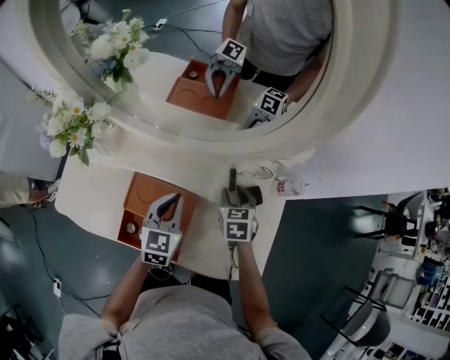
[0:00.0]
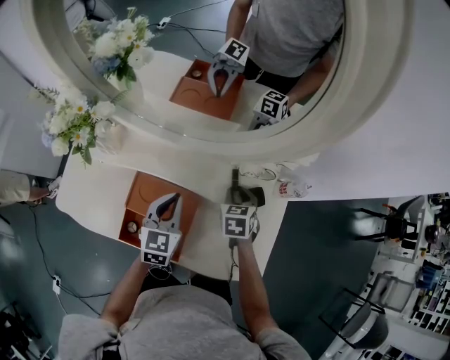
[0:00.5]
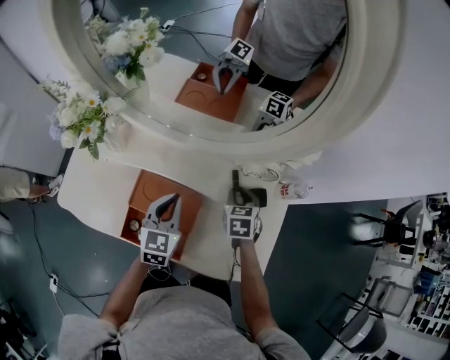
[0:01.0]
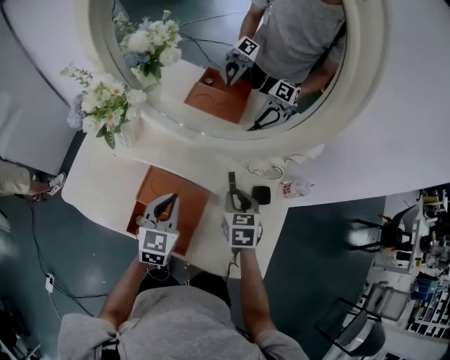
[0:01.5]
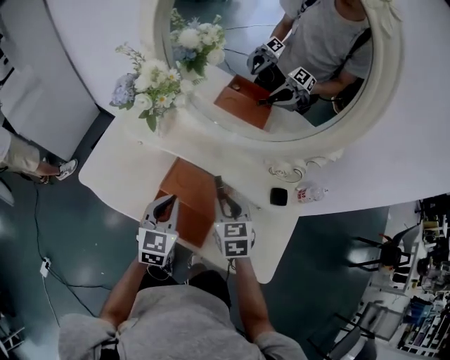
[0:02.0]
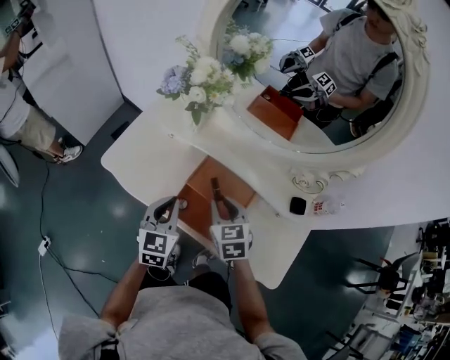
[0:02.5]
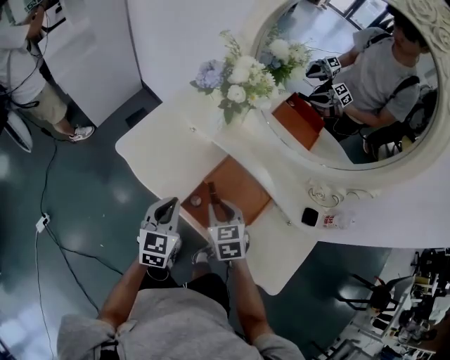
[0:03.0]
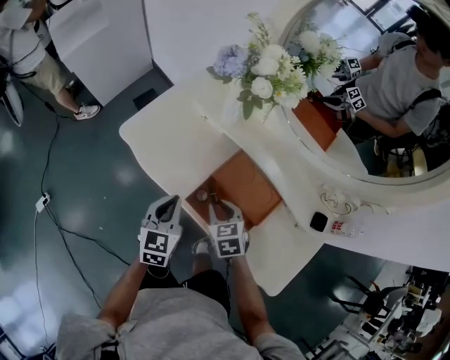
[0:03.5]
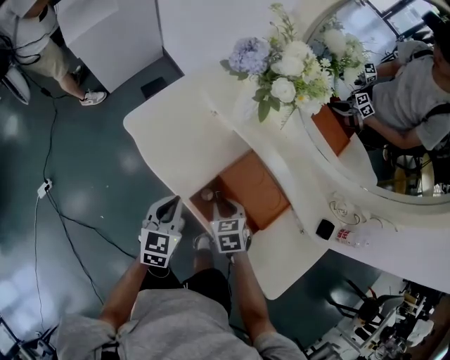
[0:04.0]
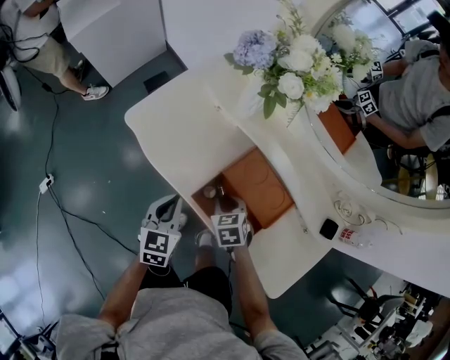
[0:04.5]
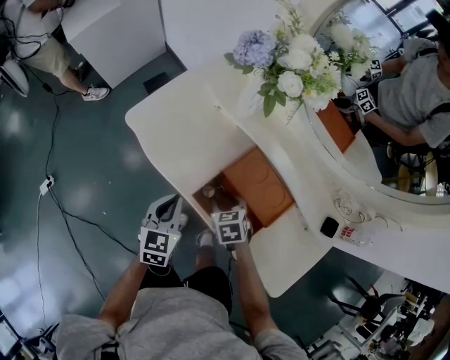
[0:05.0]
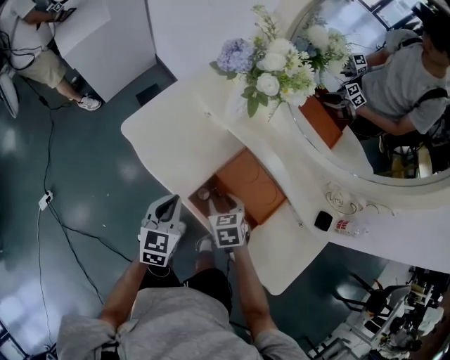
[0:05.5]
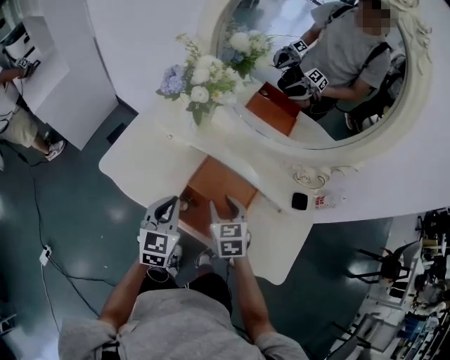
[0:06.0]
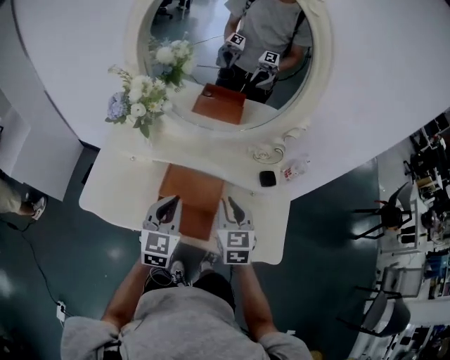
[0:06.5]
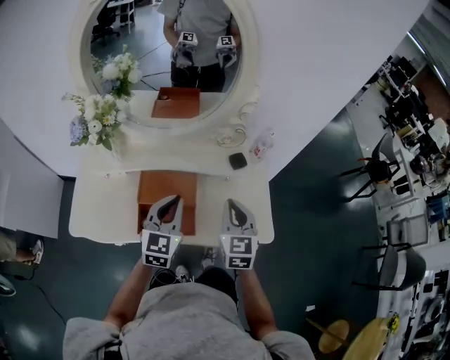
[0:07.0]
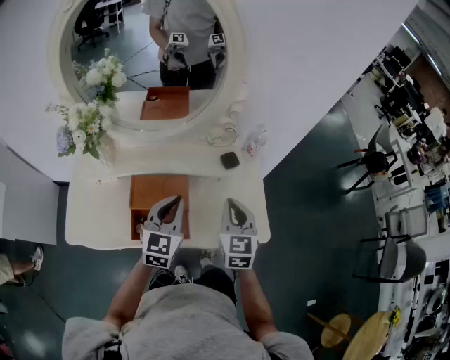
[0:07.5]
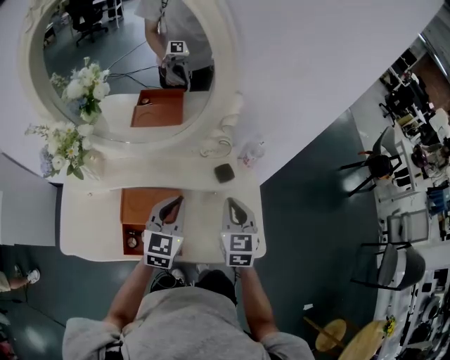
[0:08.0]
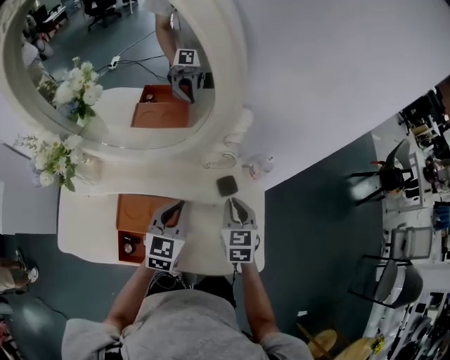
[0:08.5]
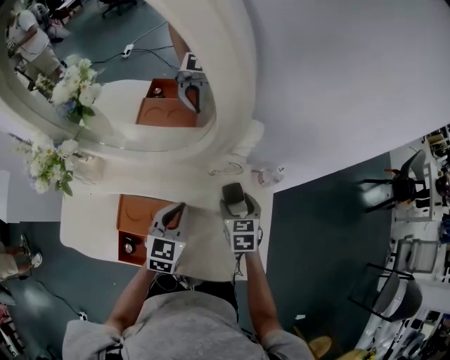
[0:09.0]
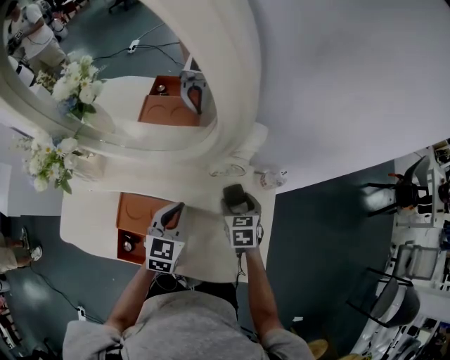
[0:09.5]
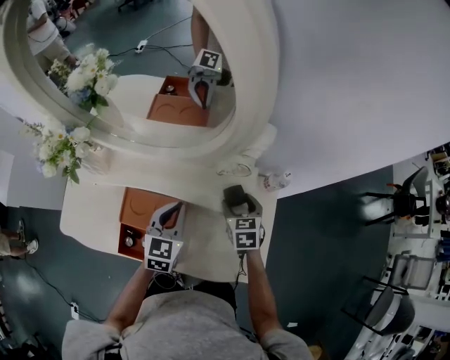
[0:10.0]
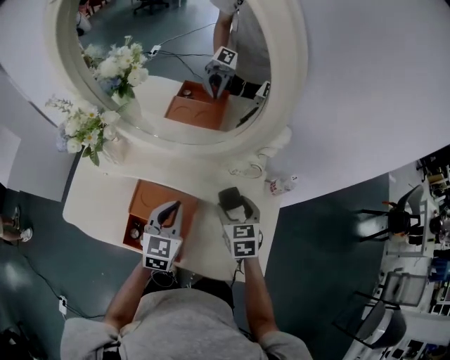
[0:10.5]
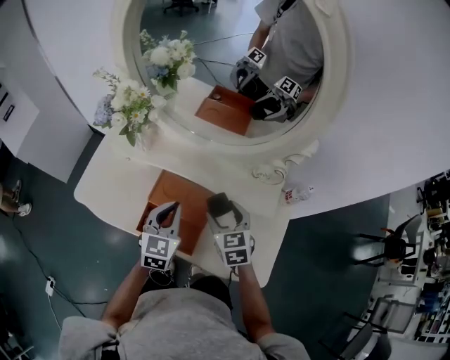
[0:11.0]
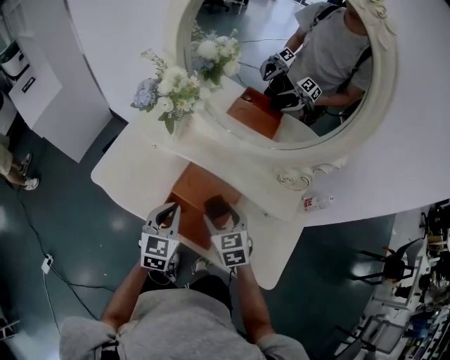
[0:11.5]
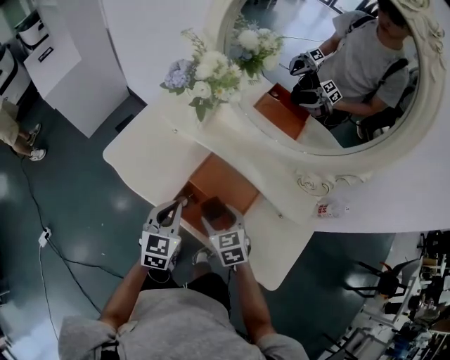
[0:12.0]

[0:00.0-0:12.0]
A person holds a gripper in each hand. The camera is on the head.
0:00.0 to 0:02.0: The left gripper goes roughly 15 cm to the left and backward; the right gripper shifts some 20 cm to the left, backward and upward.
0:02.0 to 0:04.0: Both grippers travel together to the left and downward, about 20 cm. The left gripper turns by some 20 degrees; the right gripper turns by some 30 degrees.
0:04.0 to 0:06.0: Both grippers travel together upward and to the right, approximately 15 cm. The right gripper turns by about 30 degrees.
0:06.0 to 0:08.0: The right gripper ends up approximately 30 cm from where it was, rotates roughly 40 degrees, and closes, while the left gripper shifts by some 30 cm, and turns by roughly 40 degrees.
0:08.0 to 0:10.0: The right gripper moves downward and forward, roughly 20 cm, swivels about 30 degrees, and opens. The left gripper moves downward and forward, some 10 cm.
0:10.0 to 0:12.0: The left gripper moves approximately 30 cm, and rotates about 30 degrees; the right gripper travels upward and back again, roughly 10 cm each way, and turns by approximately 40 degrees.

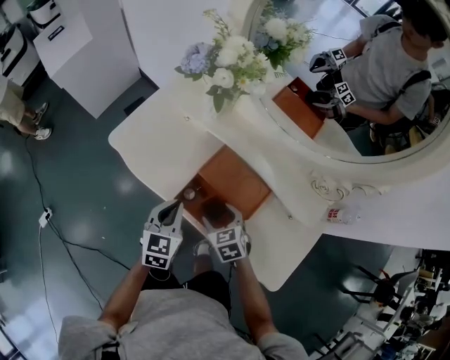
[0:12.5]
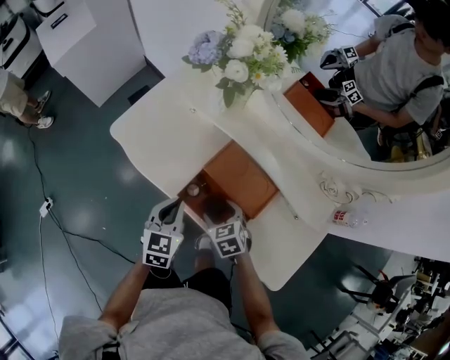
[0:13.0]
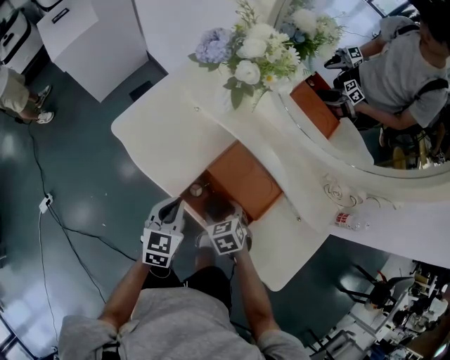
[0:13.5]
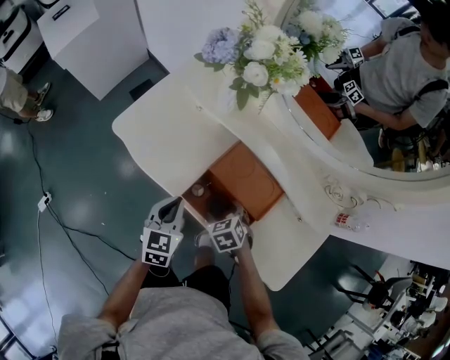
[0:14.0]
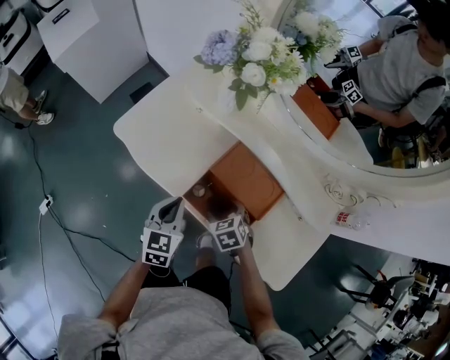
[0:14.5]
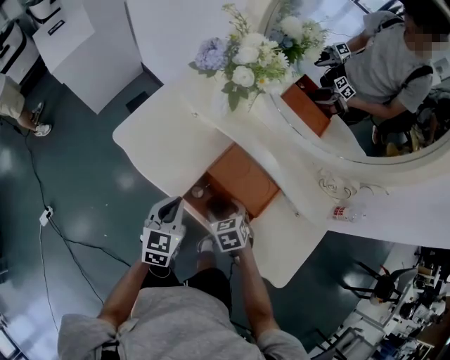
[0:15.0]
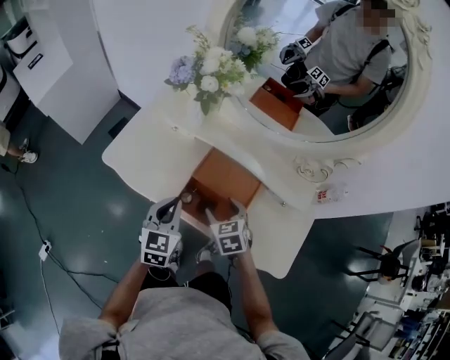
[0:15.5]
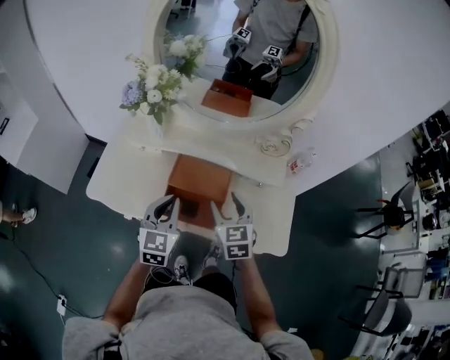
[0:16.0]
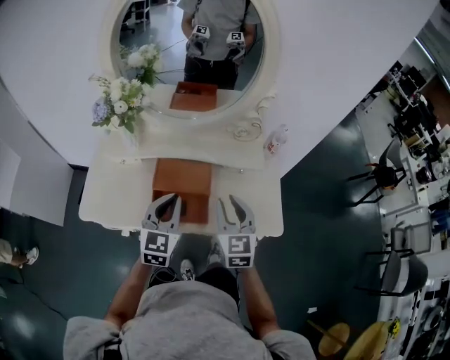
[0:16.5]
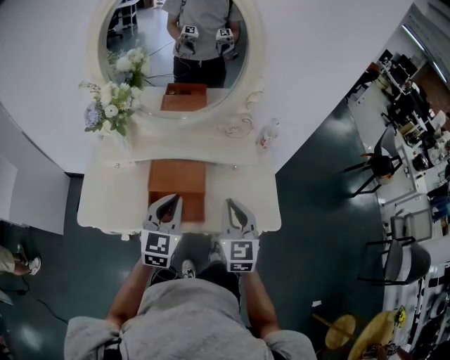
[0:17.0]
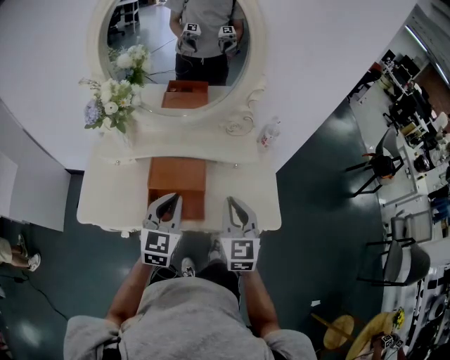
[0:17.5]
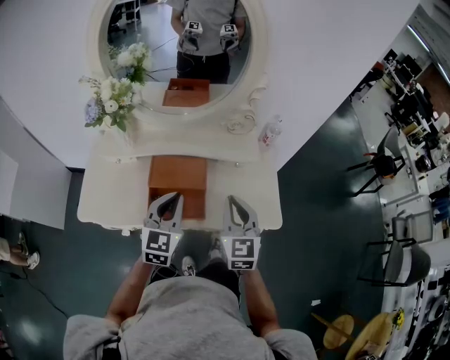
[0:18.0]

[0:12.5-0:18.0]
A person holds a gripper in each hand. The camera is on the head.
0:12.5 to 0:14.5: The right gripper travels downward by roughly 5 cm.
0:14.5 to 0:16.0: The left gripper shifts some 15 cm upward, and rotates roughly 30 degrees. Meanwhile the right gripper shifts some 20 cm upward, and angles its fingers upward, by approximately 30 degrees.
0:16.0 to 0:18.0: The left gripper goes about 10 cm to the right. The right gripper moves to the right, backward and upward, about 15 cm, turns by approximately 20 degrees, and closes.

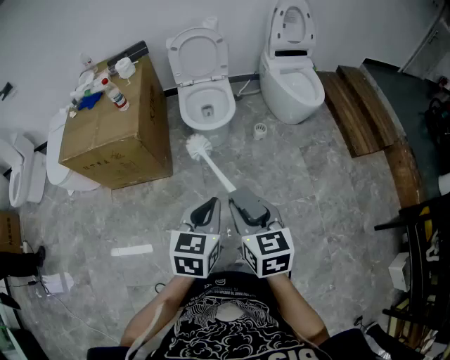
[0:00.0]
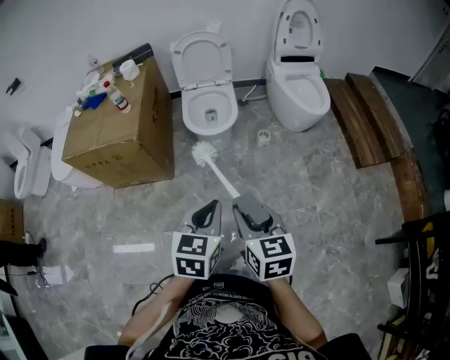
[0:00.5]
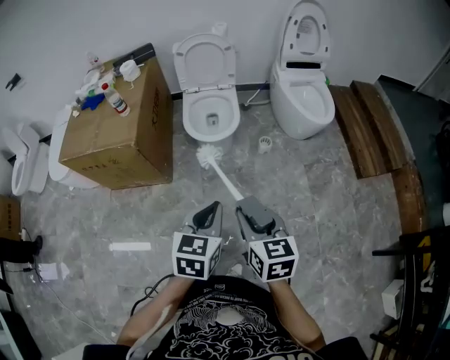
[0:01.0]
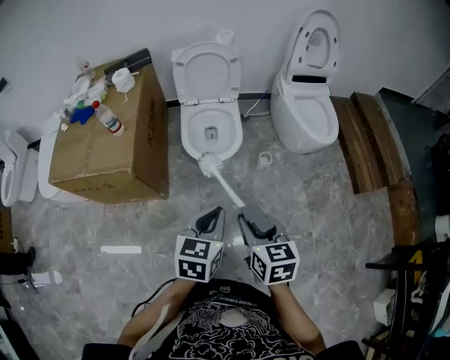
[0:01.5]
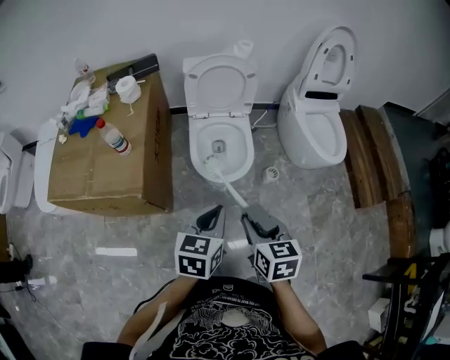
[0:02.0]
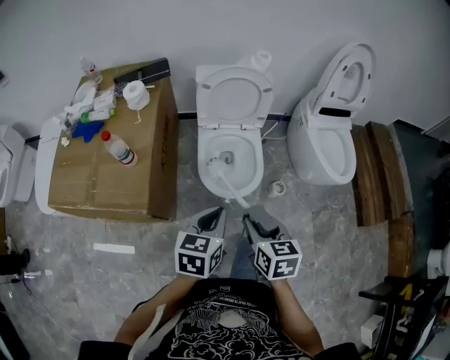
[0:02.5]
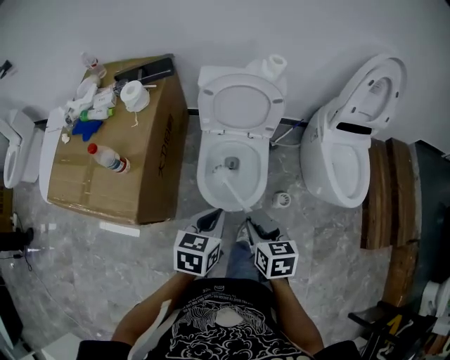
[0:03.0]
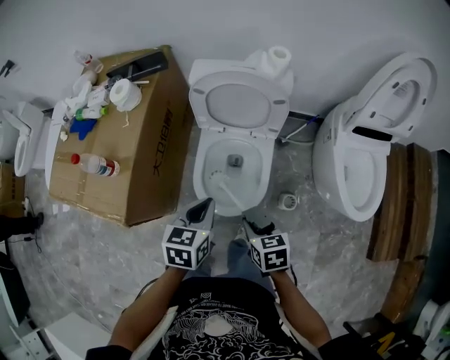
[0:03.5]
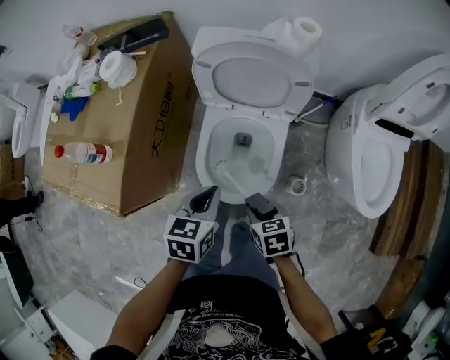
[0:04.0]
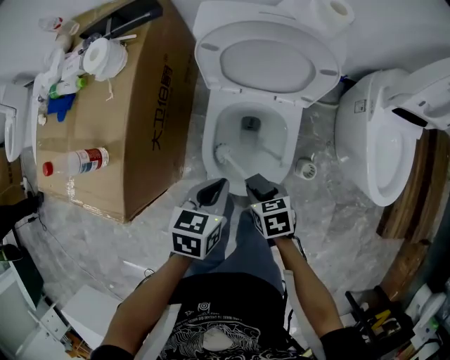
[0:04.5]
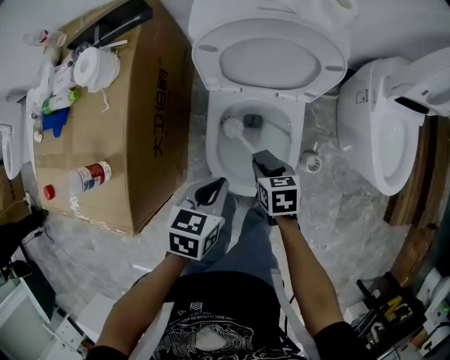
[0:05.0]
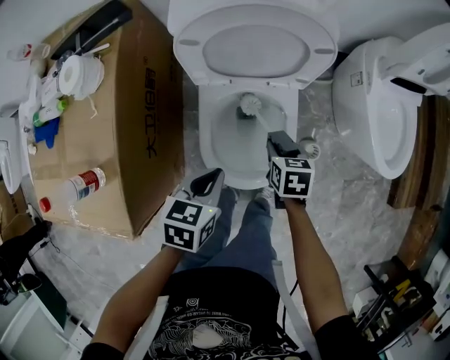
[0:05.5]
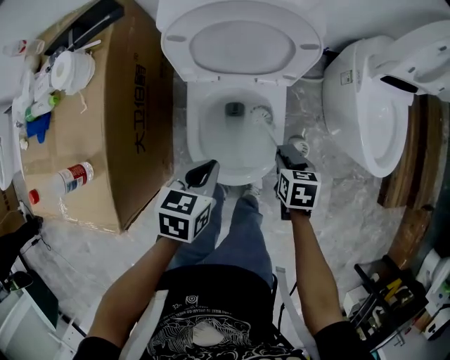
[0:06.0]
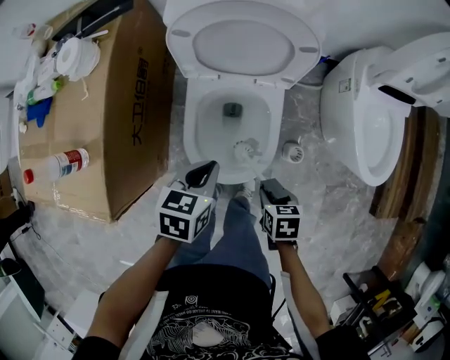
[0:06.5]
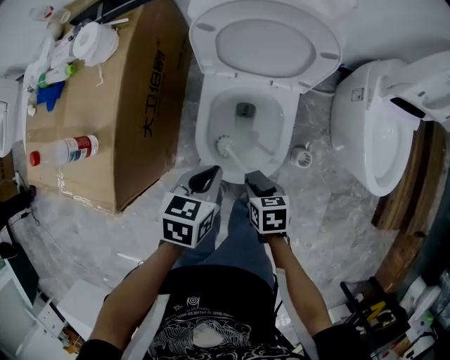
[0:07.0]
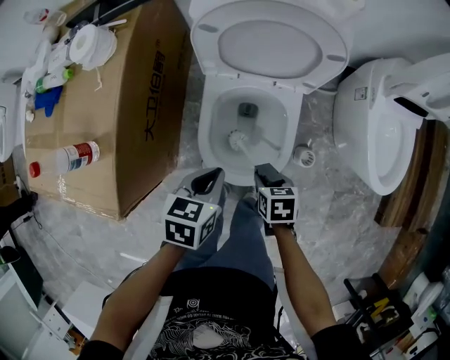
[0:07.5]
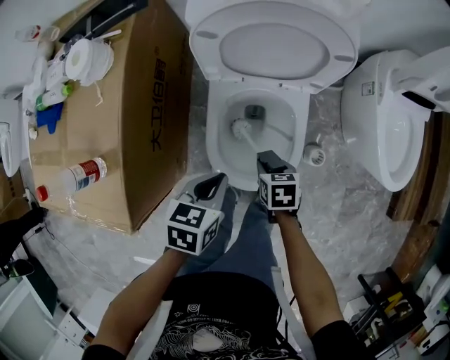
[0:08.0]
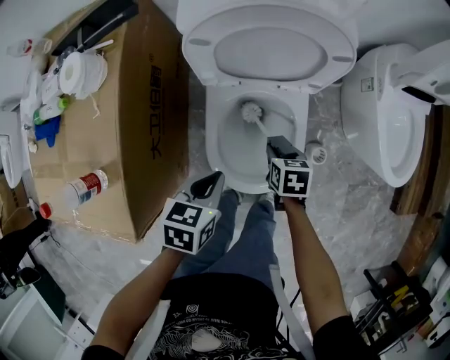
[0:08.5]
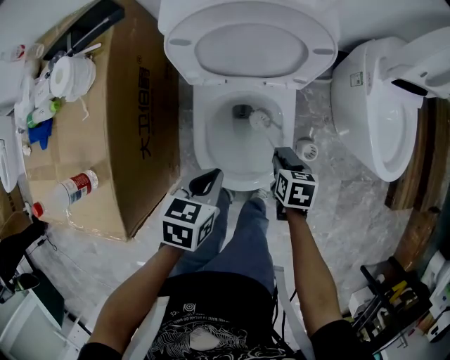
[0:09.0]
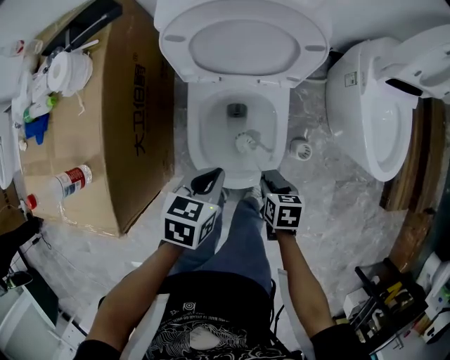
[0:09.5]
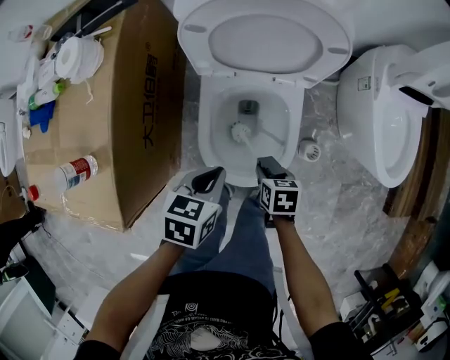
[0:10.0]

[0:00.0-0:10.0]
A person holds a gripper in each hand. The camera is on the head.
0:00.0 to 0:02.0: Both grippers travel together forward, some 30 cm.
0:02.0 to 0:04.0: The right gripper ends up some 35 cm from where it was, and turns by approximately 40 degrees. The left gripper shifts by roughly 30 cm, and rotates approximately 20 degrees.
0:04.0 to 0:06.0: The right gripper changes place by approximately 15 cm, and turns by about 30 degrees. The left gripper travels downward by approximately 5 cm.
0:06.0 to 0:08.0: The right gripper shifts approximately 10 cm to the left.
0:08.0 to 0:10.0: The right gripper travels forward and back again, about 5 cm each way.
